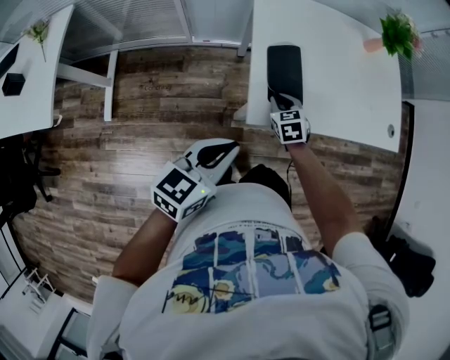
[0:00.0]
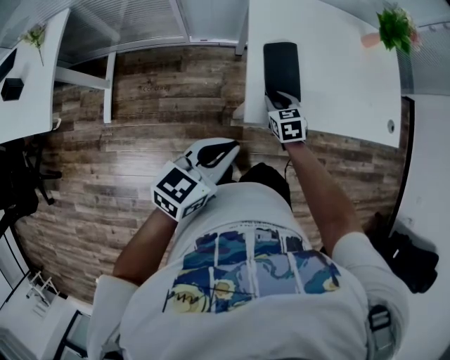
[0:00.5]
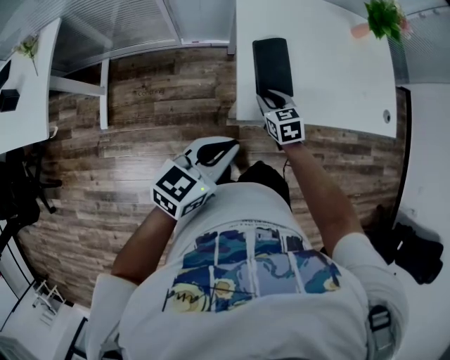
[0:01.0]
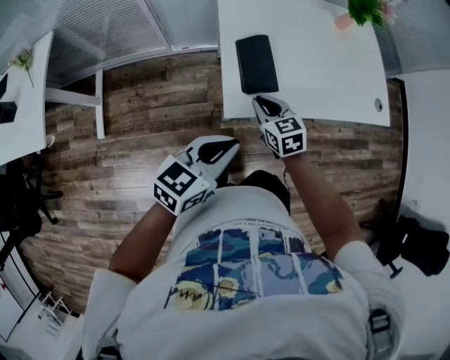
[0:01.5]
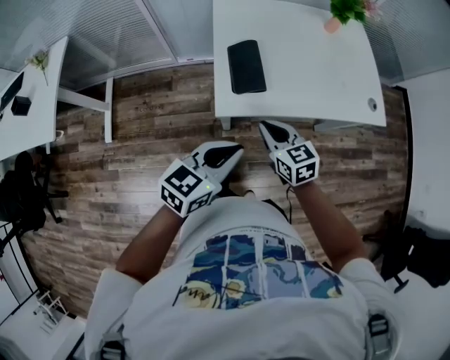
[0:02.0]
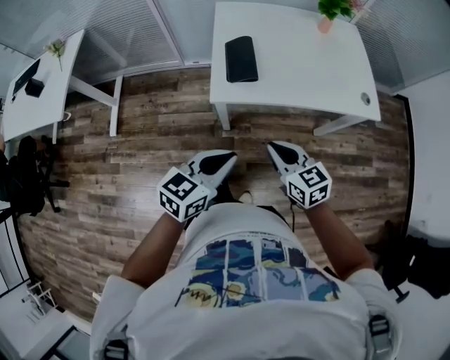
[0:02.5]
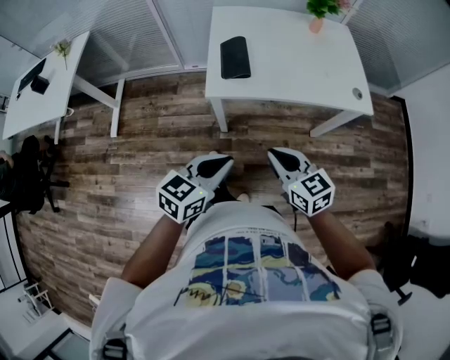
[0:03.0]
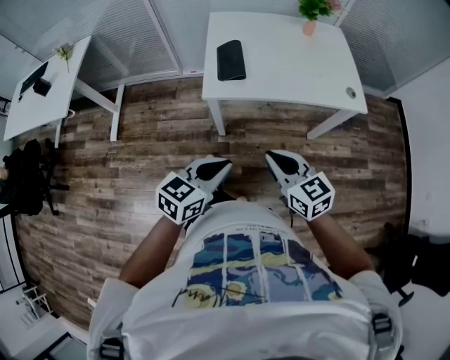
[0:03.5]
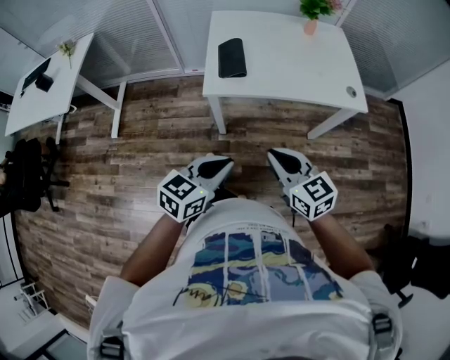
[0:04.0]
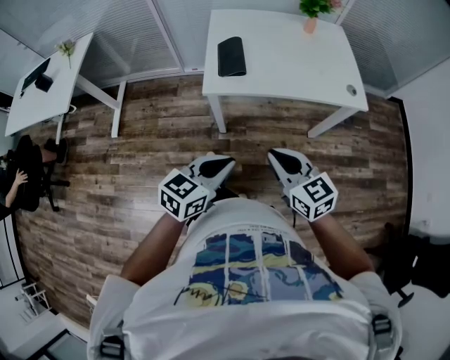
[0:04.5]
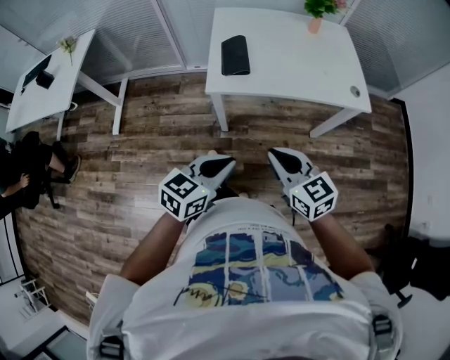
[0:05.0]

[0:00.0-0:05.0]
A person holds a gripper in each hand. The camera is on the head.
0:00.0 to 0:02.5: The right gripper moves backward, upward and to the right, approximately 35 cm, and rotates roughly 30 degrees. The left gripper shifts about 25 cm to the right and backward.
0:02.5 to 0:05.0: The left gripper moves backward, about 10 cm, while the right gripper goes approximately 15 cm backward and upward.

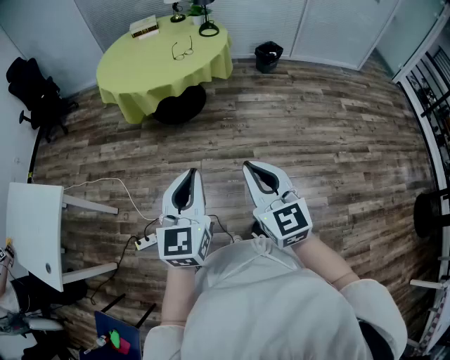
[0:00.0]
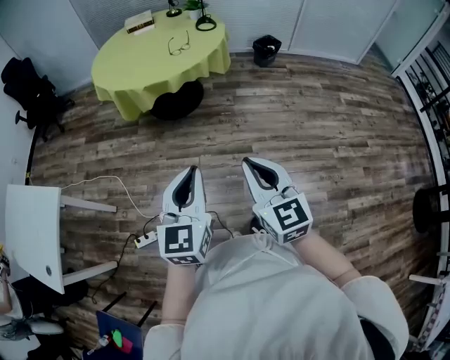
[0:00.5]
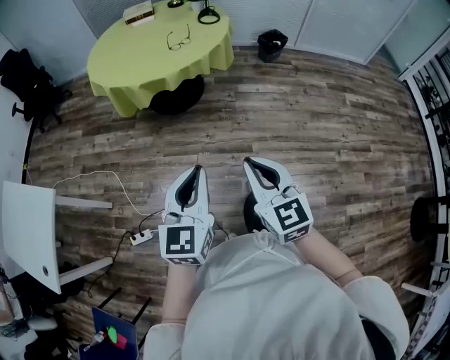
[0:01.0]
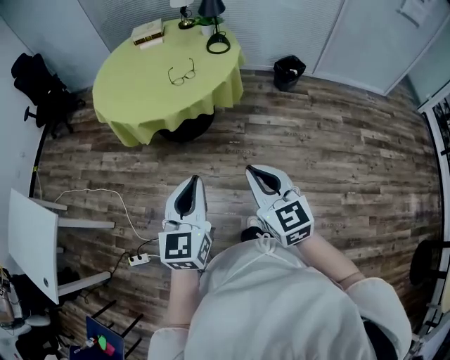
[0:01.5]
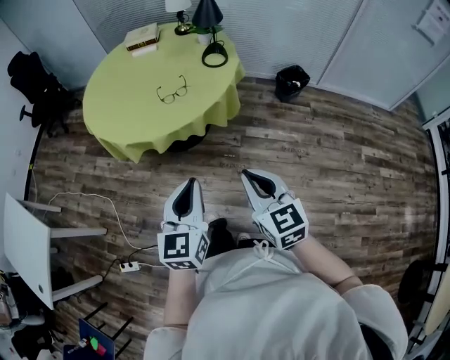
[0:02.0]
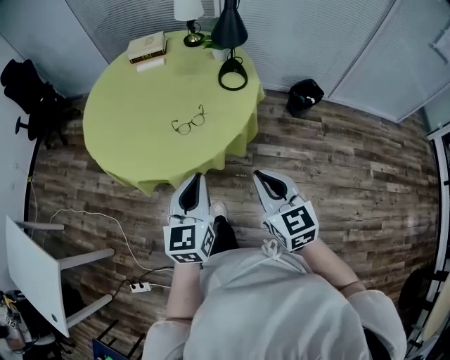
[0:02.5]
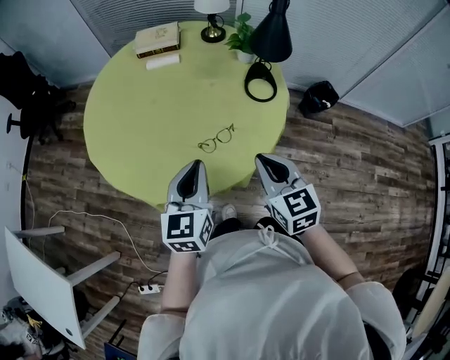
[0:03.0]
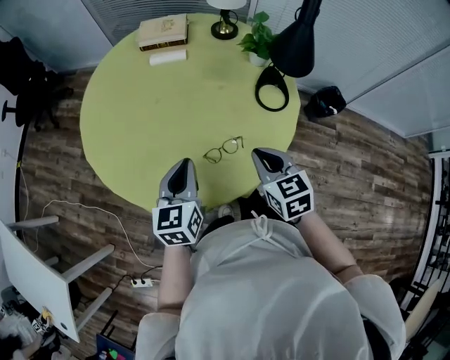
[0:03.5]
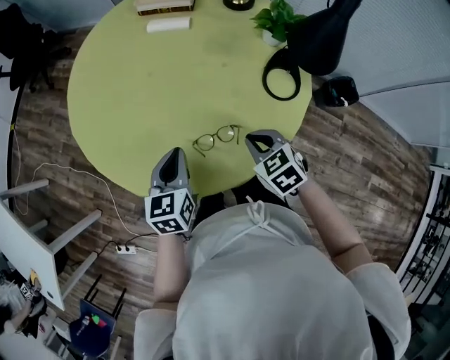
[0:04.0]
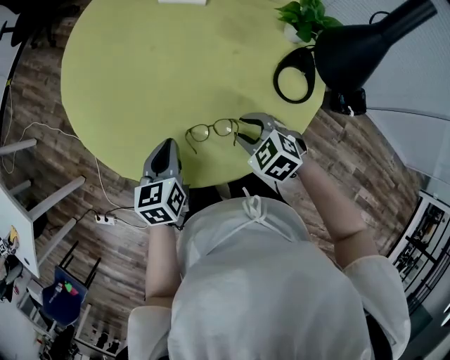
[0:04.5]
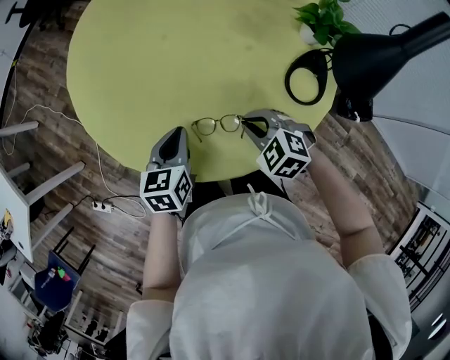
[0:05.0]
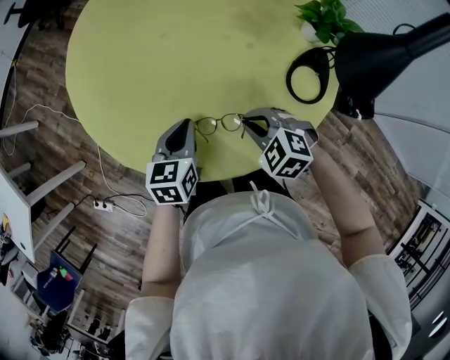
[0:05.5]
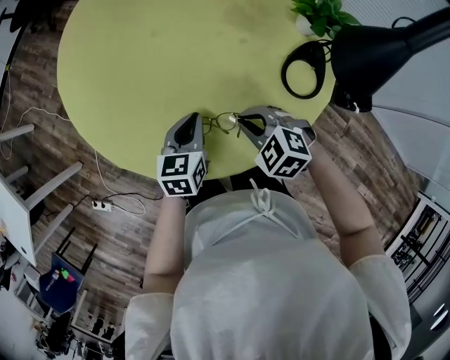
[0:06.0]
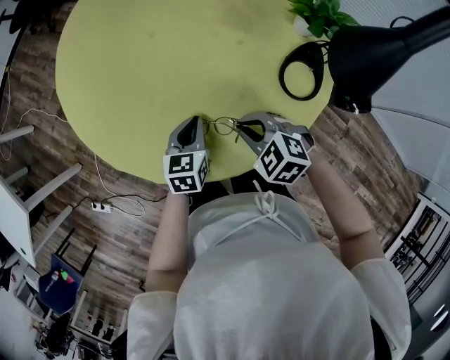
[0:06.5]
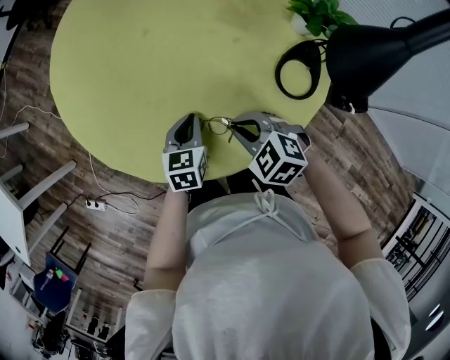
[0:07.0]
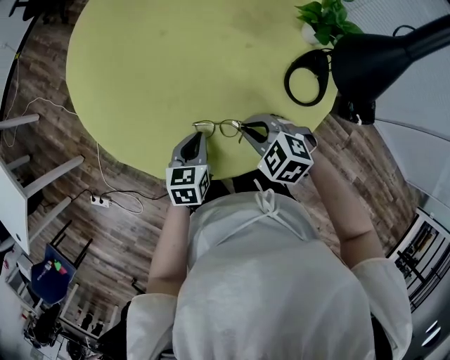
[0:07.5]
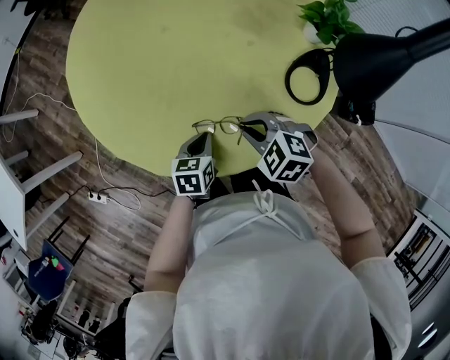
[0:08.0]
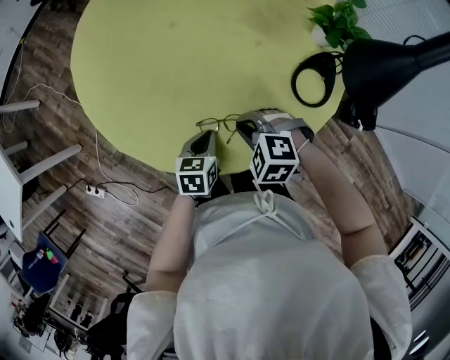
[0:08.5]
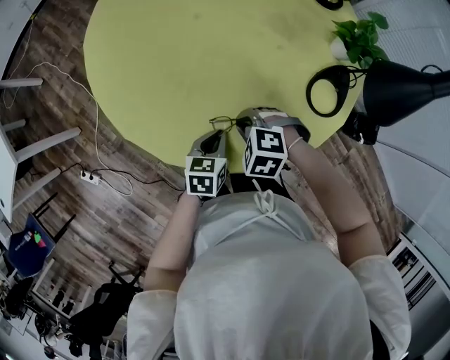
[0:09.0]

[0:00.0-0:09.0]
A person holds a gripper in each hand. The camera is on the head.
0:00.0 to 0:02.0: The pair of grippers is taken forward and to the right, some 50 cm.
0:02.0 to 0:04.5: The pair of grippers is taken about 60 cm. The left gripper turns by roughly 40 degrees, while the right gripper angles its fingers downward, by about 40 degrees, and opens its fingers.
0:04.5 to 0:07.0: The left gripper travels downward and to the right by roughly 10 cm, while the right gripper closes up.
0:07.0 to 0:09.0: The right gripper travels to the left by roughly 5 cm, and changes its angle by approximately 30 degrees, while the left gripper moves backward, some 5 cm.

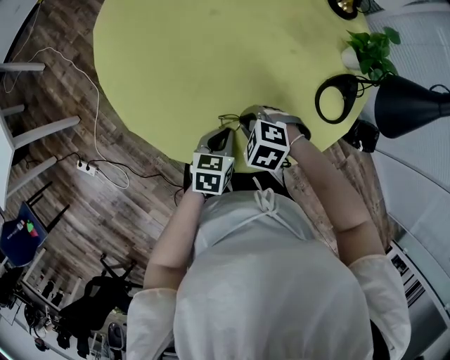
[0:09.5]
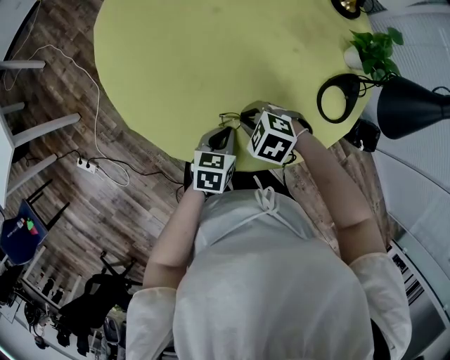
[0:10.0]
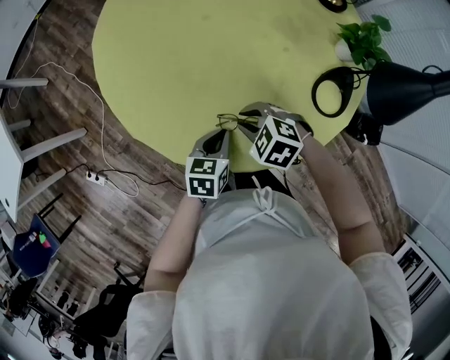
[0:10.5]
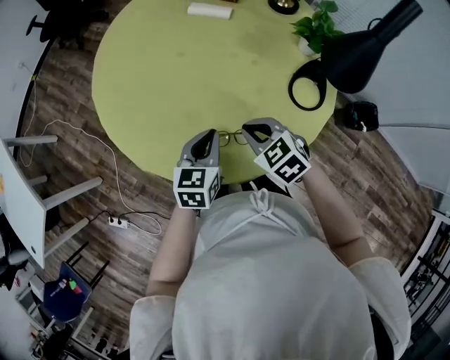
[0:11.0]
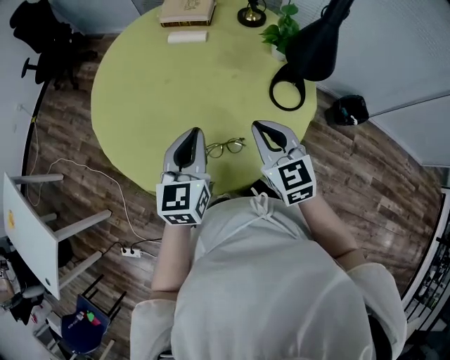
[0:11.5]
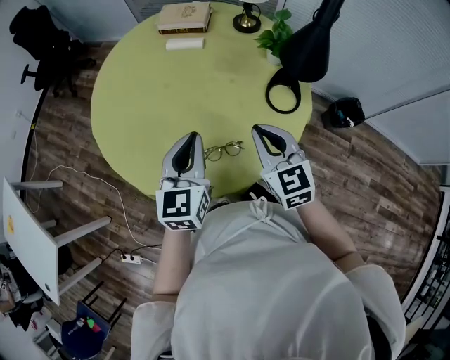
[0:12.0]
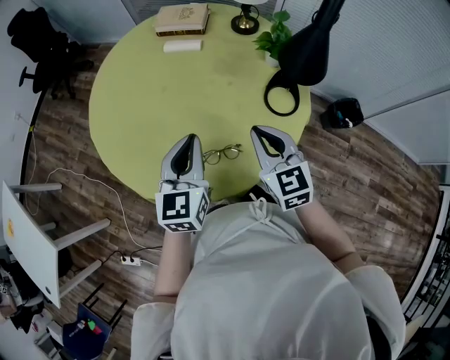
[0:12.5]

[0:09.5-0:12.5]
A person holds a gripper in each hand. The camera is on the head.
0:09.5 to 0:11.0: Both grippers travel together upward, approximately 15 cm. The right gripper turns by about 50 degrees; the left gripper swivels roughly 20 degrees.
0:11.0 to 0:12.5: The left gripper moves upward, some 15 cm, and rotates roughly 20 degrees; the right gripper moves upward and to the right, approximately 15 cm, and rotates roughly 40 degrees.

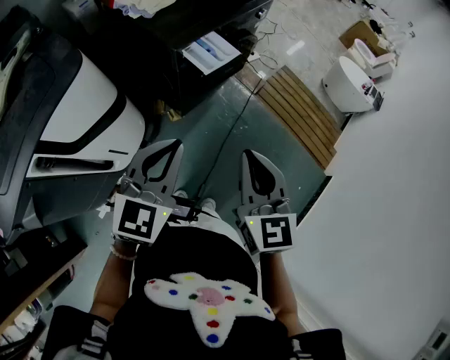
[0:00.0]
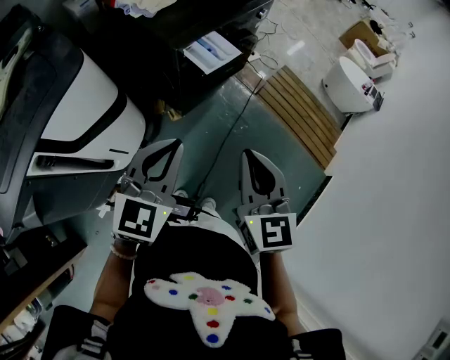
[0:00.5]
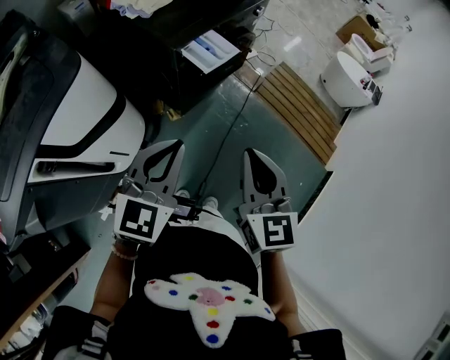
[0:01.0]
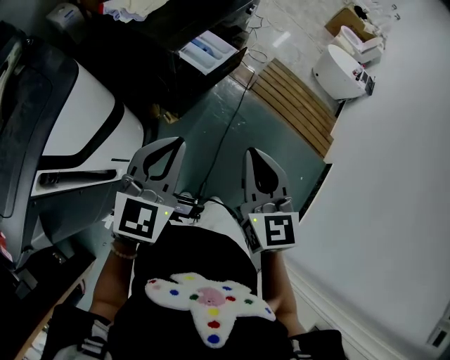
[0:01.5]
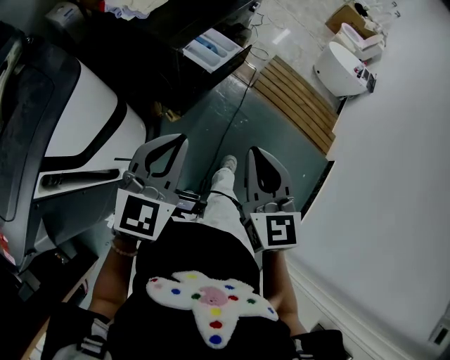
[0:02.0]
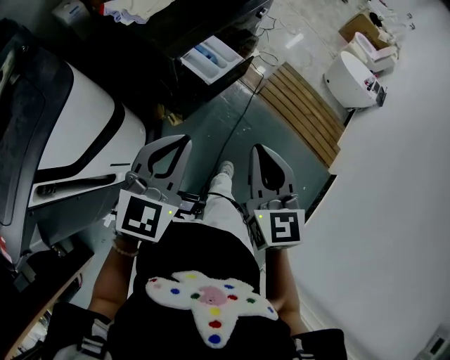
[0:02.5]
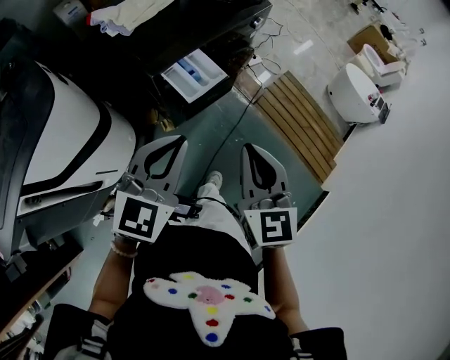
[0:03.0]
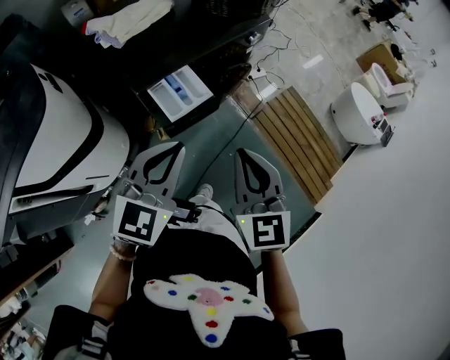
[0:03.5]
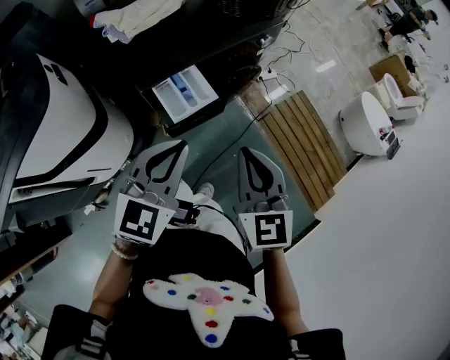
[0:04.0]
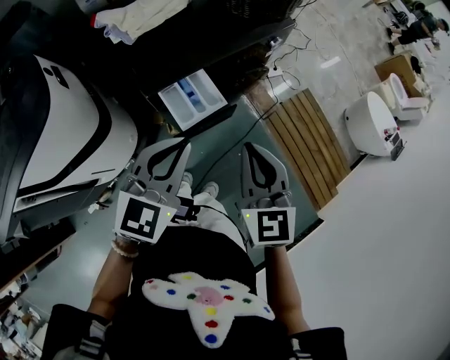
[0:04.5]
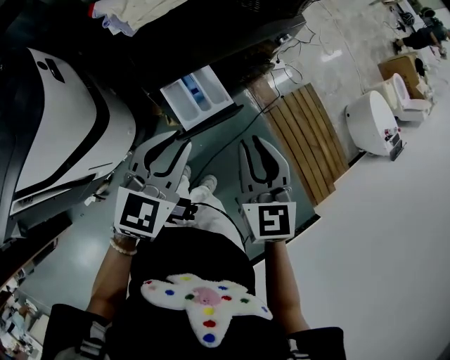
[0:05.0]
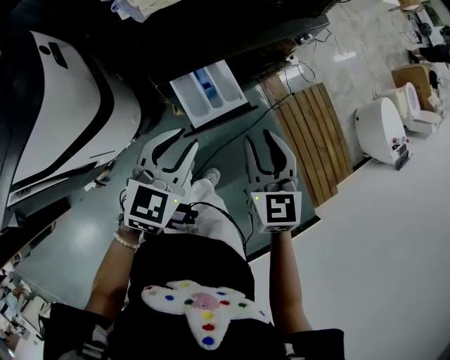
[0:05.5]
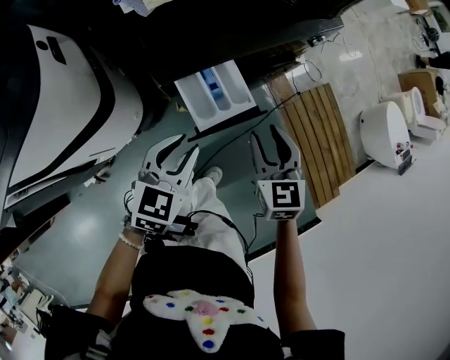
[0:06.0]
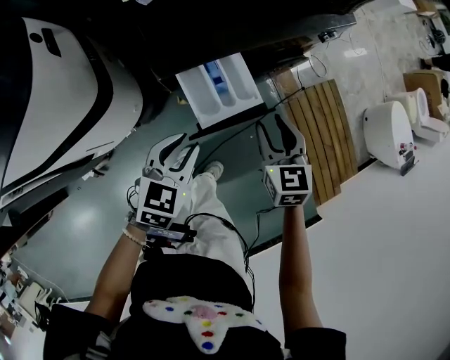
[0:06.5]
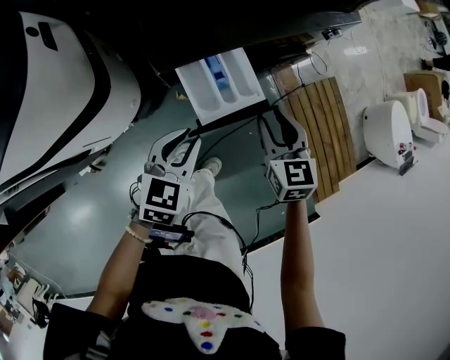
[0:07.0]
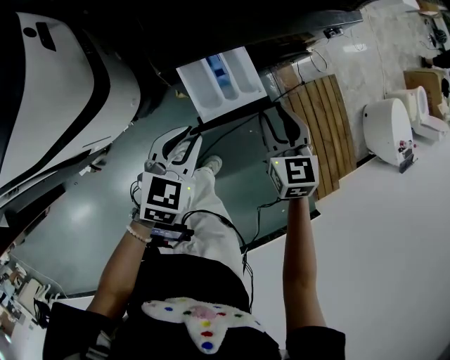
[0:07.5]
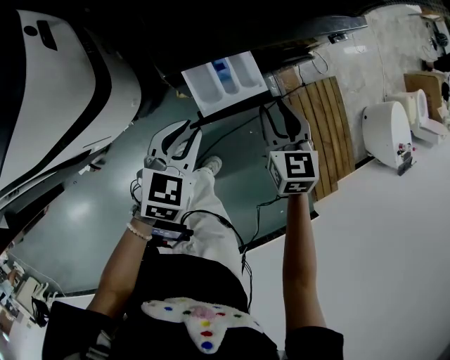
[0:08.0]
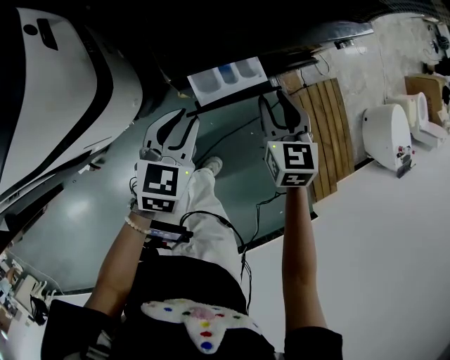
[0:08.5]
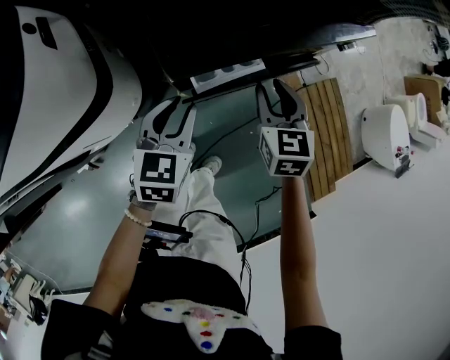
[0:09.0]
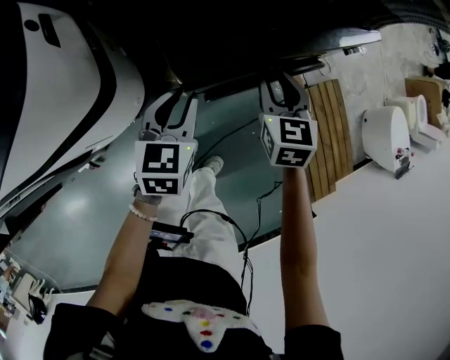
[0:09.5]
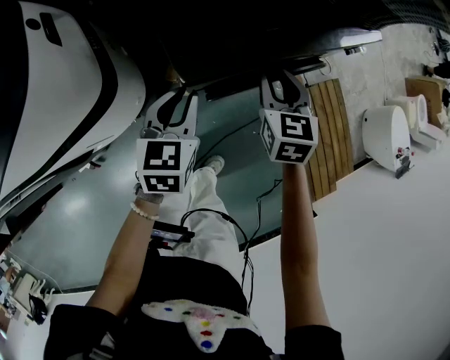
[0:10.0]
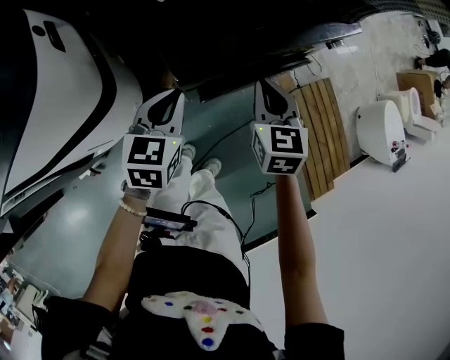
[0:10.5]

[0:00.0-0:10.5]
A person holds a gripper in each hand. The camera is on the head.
0:00.0 to 0:02.0: The grippers move only a little.
0:02.0 to 0:04.0: The grippers both shift forward and to the right by roughly 25 cm. The right gripper swivels some 20 degrees.
0:04.0 to 0:06.5: The left gripper travels downward by roughly 20 cm, turns by about 30 degrees, and opens up. The right gripper shifts some 25 cm downward and forward, rotates roughly 20 degrees, and opens.
0:06.5 to 0:08.5: The two grippers go approximately 5 cm forward.
0:08.5 to 0:10.5: The right gripper changes place by roughly 5 cm, and closes. The left gripper changes place by approximately 5 cm.
